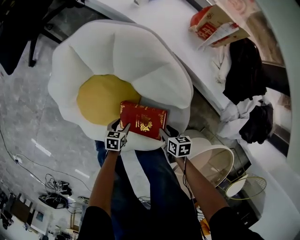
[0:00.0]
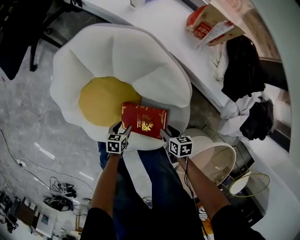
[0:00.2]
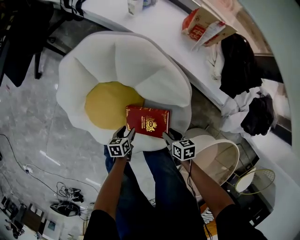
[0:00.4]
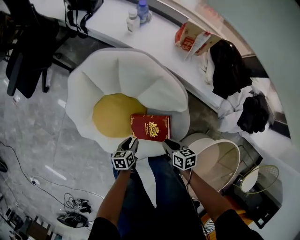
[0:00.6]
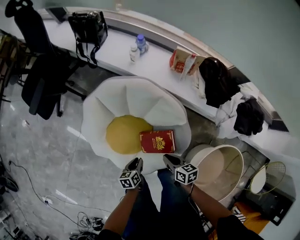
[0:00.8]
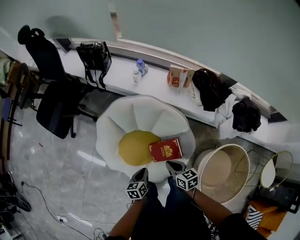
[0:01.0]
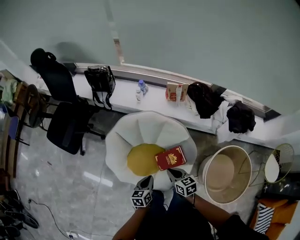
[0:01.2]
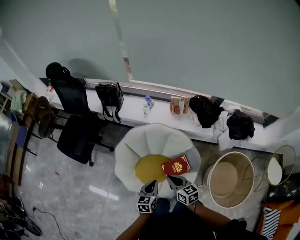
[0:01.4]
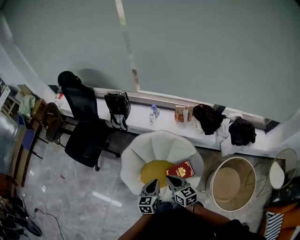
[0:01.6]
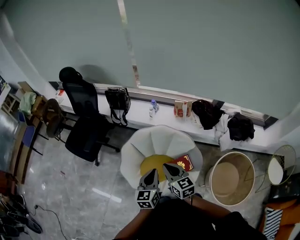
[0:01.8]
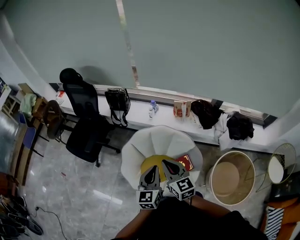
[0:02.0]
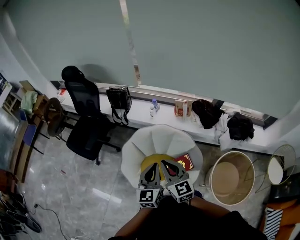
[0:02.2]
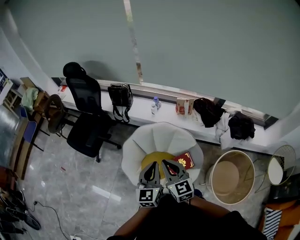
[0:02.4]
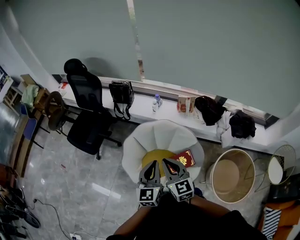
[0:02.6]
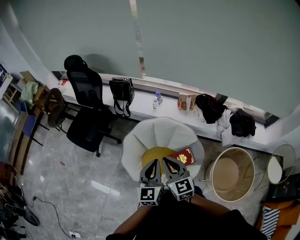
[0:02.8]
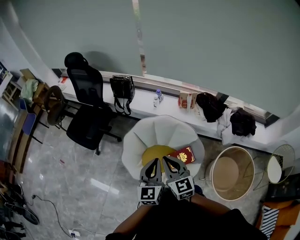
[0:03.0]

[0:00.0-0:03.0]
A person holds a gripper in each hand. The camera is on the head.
0.0 to 1.6 s: The left gripper shifts approximately 60 cm upward, tilts its fingers about 30 degrees upward, and closes its fingers. The right gripper heads upward and to the left, covering some 60 cm, tips its fingers upward by roughly 40 degrees, and closes up.
1.6 to 3.0 s: The right gripper moves upward and to the left, roughly 15 cm, and changes its angle by approximately 20 degrees. Meanwhile the left gripper heads upward, covering about 15 cm, and turns by roughly 20 degrees.

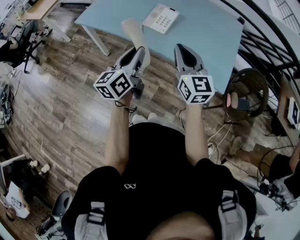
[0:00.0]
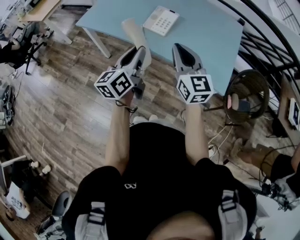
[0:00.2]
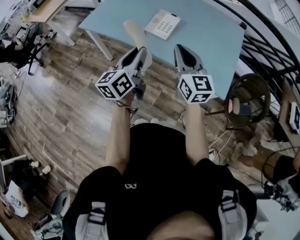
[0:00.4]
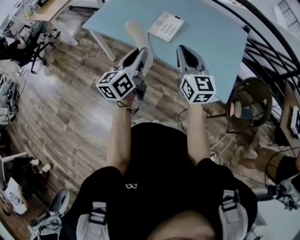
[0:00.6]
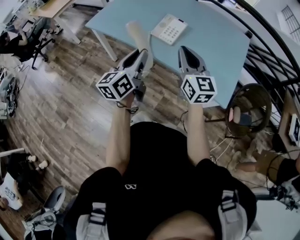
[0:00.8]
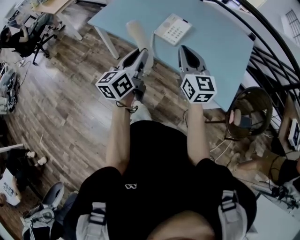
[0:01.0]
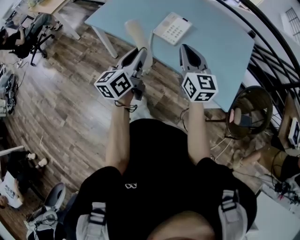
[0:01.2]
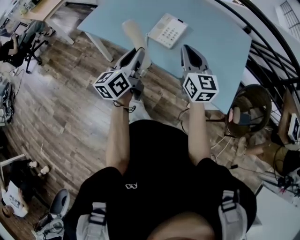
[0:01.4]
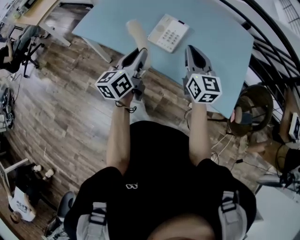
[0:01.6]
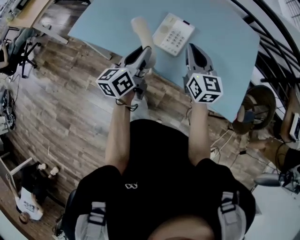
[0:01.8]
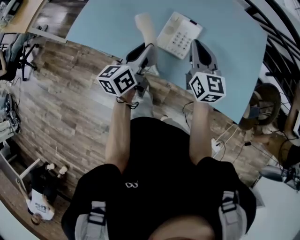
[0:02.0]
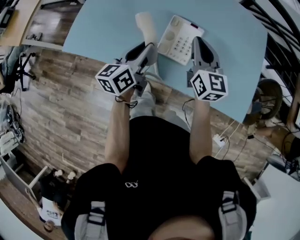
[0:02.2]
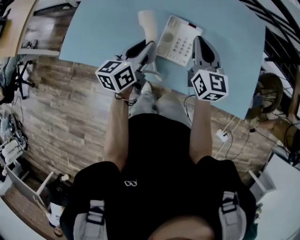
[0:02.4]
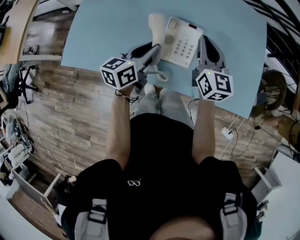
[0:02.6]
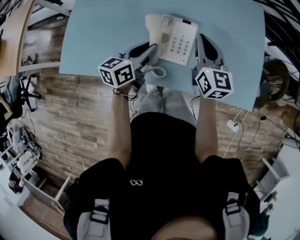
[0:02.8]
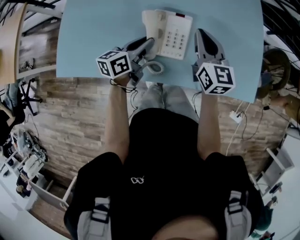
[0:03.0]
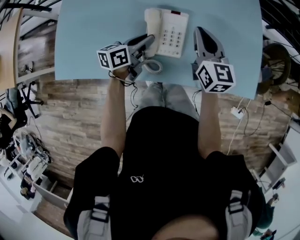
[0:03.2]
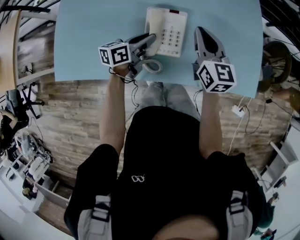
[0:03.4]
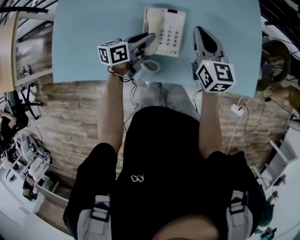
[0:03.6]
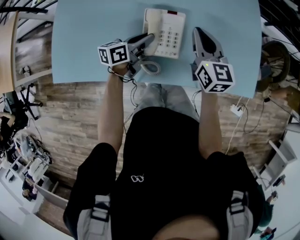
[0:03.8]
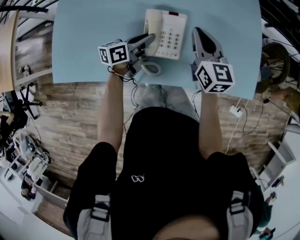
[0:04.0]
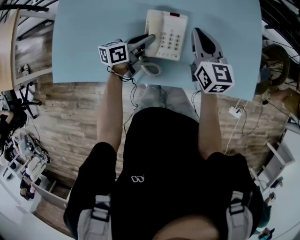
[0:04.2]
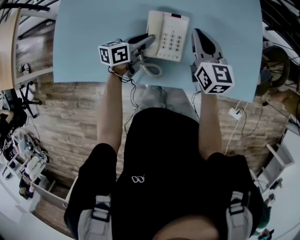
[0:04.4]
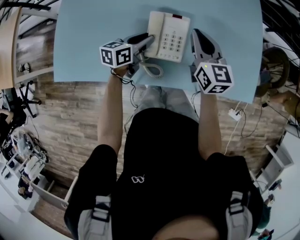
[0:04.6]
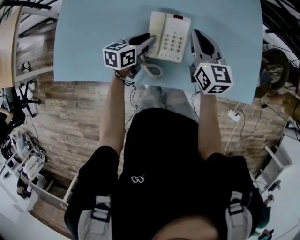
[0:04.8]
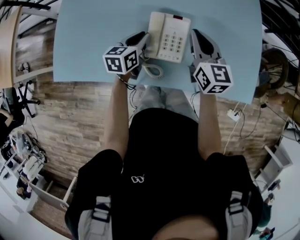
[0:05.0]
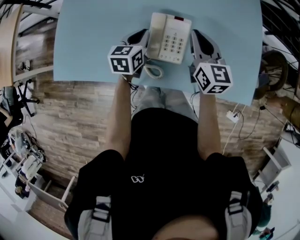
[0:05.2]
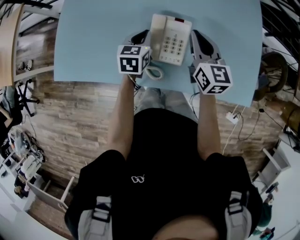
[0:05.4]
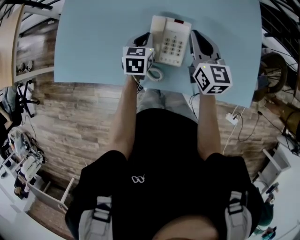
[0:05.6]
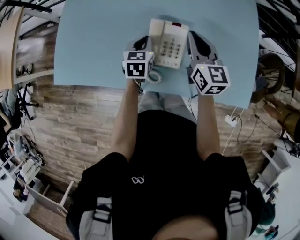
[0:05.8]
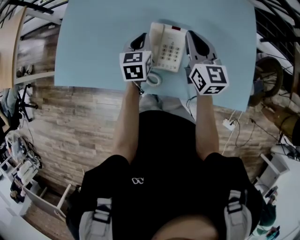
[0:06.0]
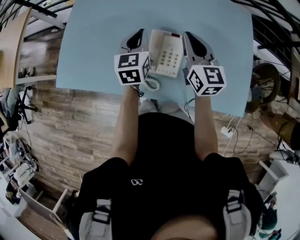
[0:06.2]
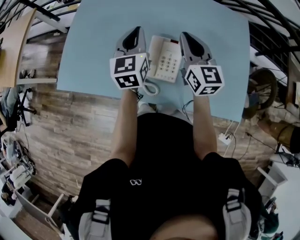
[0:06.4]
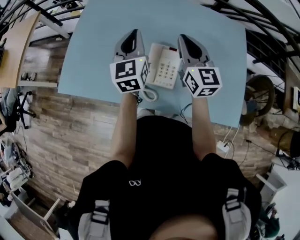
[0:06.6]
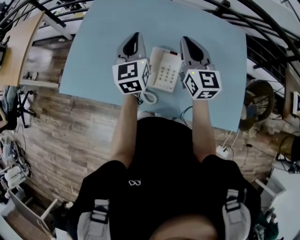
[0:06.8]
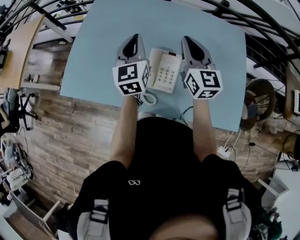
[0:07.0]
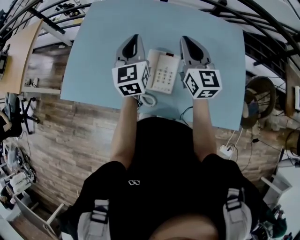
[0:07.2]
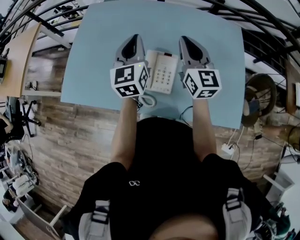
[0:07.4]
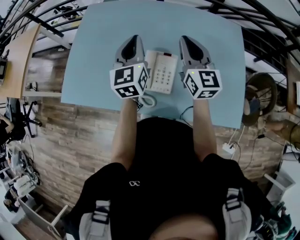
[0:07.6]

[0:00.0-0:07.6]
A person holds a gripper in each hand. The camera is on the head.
0.0 to 1.6 s: Both grippers travel together forward, roughly 15 cm.
1.6 to 3.0 s: The right gripper changes place by approximately 20 cm, and changes its angle by about 20 degrees. The left gripper shifts by approximately 25 cm, and turns by some 40 degrees.
3.0 to 4.6 s: The left gripper heads downward, covering roughly 5 cm.
4.6 to 6.0 s: The left gripper goes approximately 5 cm upward, changes its angle by about 40 degrees, and closes up.
6.0 to 7.6 s: The right gripper shifts some 10 cm upward; the left gripper moves upward, roughly 20 cm, and changes its angle by roughly 30 degrees.

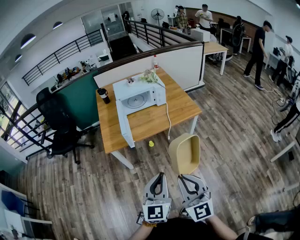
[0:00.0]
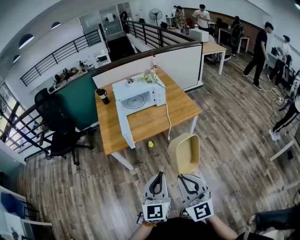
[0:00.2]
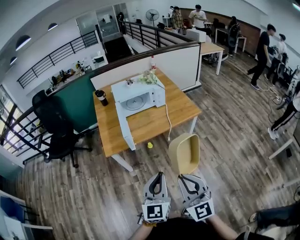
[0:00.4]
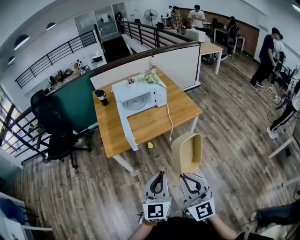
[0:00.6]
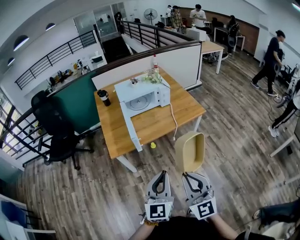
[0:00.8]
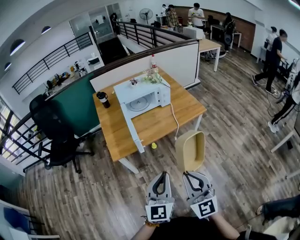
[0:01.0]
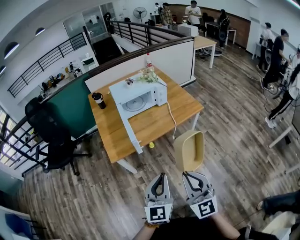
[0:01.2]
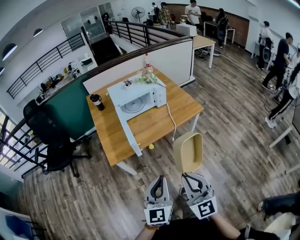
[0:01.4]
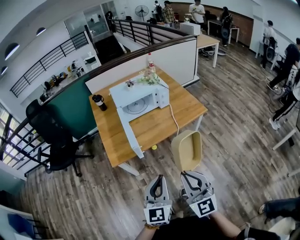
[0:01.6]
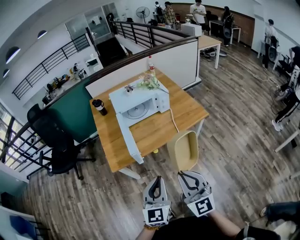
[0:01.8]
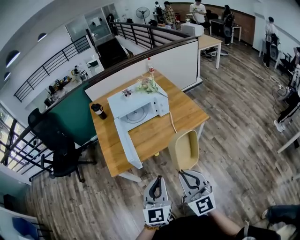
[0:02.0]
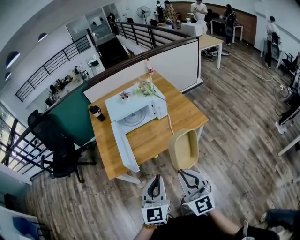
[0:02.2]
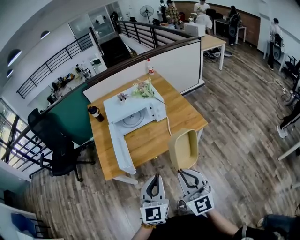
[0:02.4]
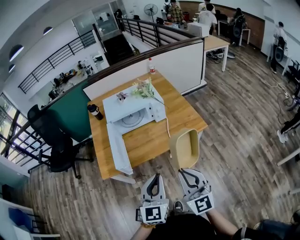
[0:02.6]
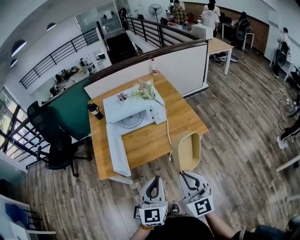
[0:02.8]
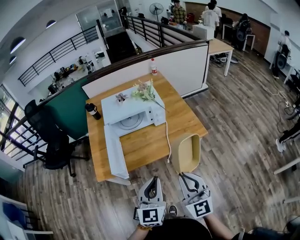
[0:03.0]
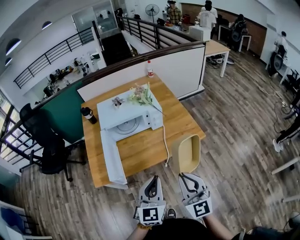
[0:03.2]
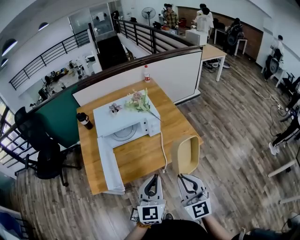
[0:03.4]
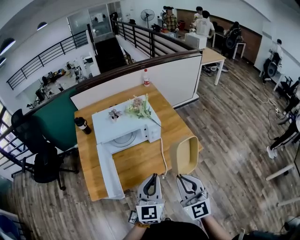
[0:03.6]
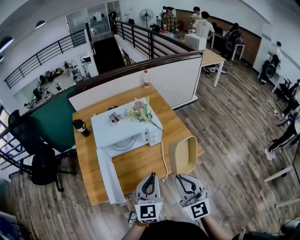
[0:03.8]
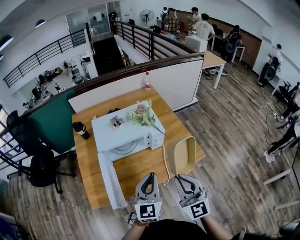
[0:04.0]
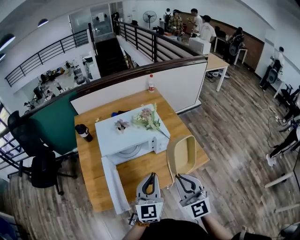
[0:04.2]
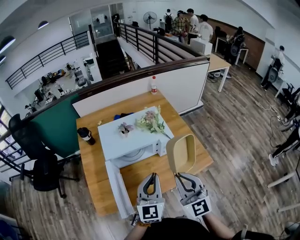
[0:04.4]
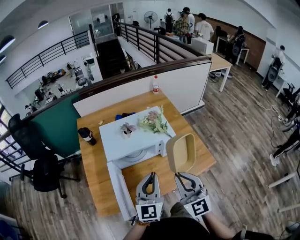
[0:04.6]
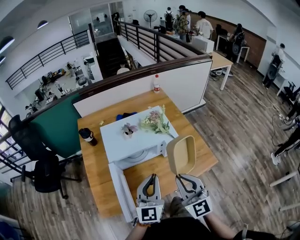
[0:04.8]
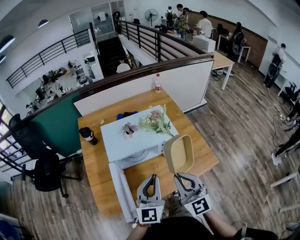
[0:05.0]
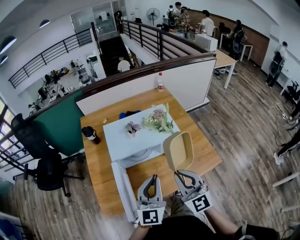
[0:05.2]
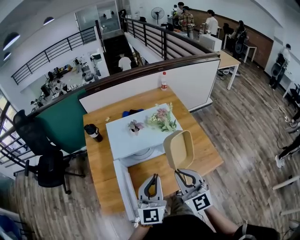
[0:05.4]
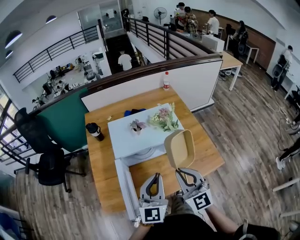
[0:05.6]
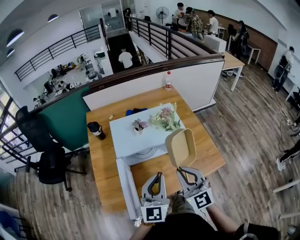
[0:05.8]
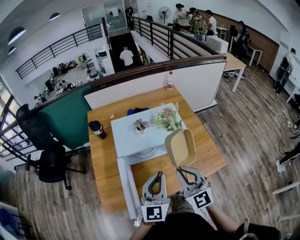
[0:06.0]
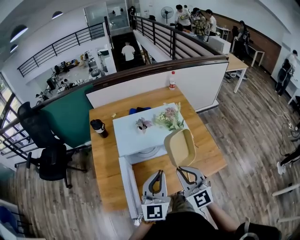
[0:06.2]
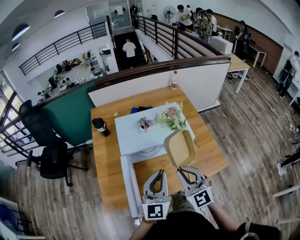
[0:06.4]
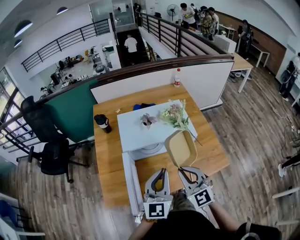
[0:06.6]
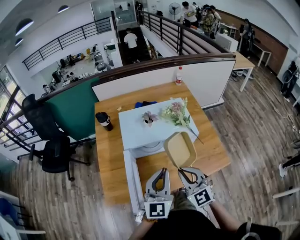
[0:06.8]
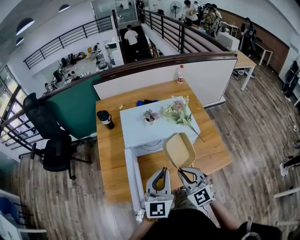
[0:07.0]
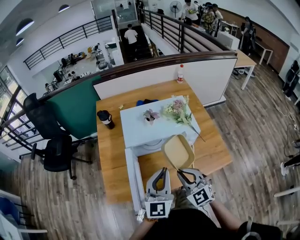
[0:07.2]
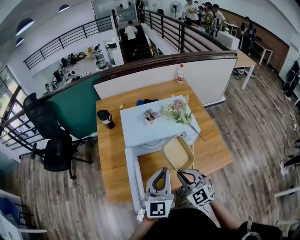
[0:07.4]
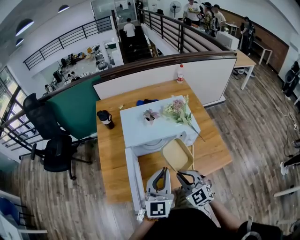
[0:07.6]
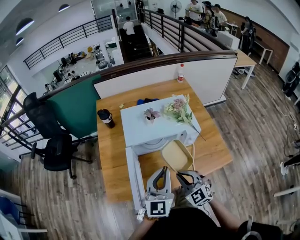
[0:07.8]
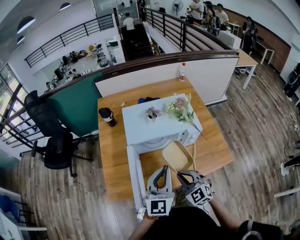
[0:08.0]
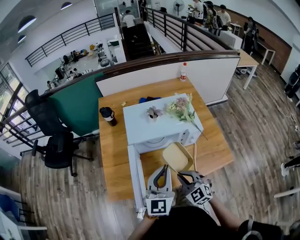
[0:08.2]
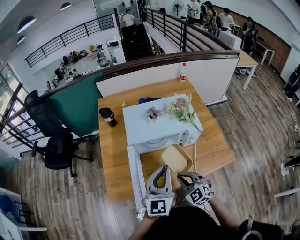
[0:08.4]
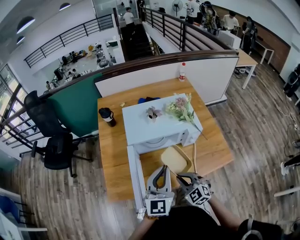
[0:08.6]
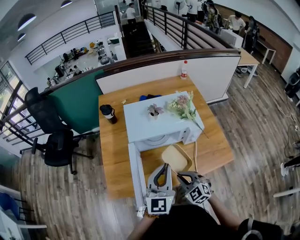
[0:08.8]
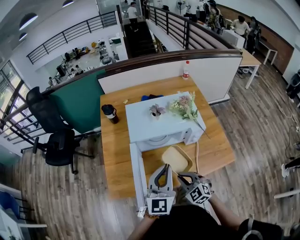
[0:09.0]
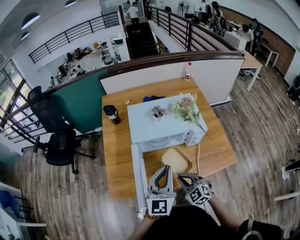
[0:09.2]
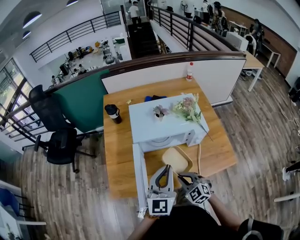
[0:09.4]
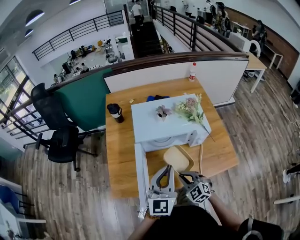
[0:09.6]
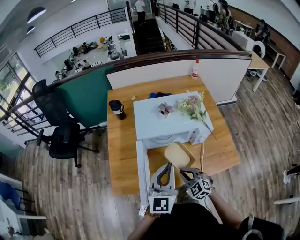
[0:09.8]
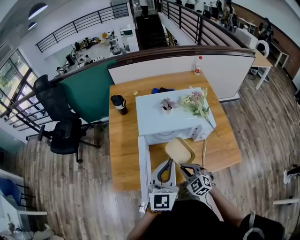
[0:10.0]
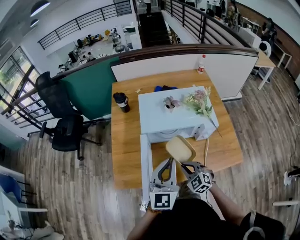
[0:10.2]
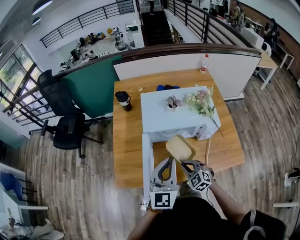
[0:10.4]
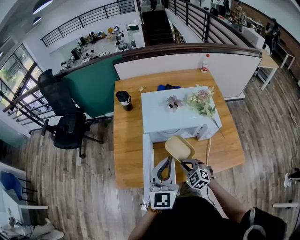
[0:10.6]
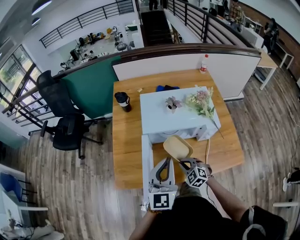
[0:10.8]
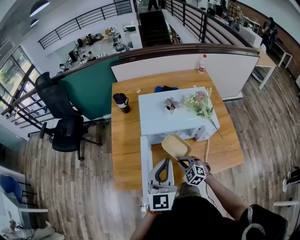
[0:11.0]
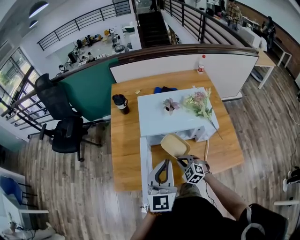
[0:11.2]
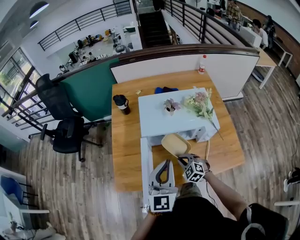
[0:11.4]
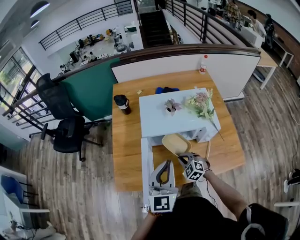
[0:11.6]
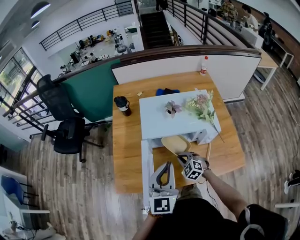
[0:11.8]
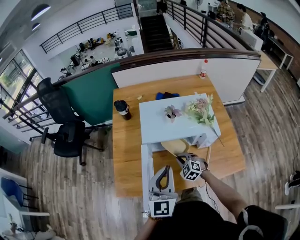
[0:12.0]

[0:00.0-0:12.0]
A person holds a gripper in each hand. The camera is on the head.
0.0 to 1.6 s: The right gripper travels forward and to the left by approximately 15 cm; the left gripper shifts roughly 15 cm to the left and forward.
1.6 to 3.0 s: Both grippers move forward and to the right, roughly 20 cm.
3.0 to 4.4 s: Both grippers move forward, approximately 25 cm.
4.4 to 6.0 s: The right gripper is displaced forward and downward by approximately 10 cm.
6.0 to 7.6 s: The right gripper heads downward, covering about 10 cm.
7.6 to 9.0 s: The right gripper goes roughly 10 cm downward.
9.0 to 10.4 s: The right gripper shifts some 5 cm forward.
10.4 to 12.0 s: The right gripper travels forward and downward by approximately 10 cm.

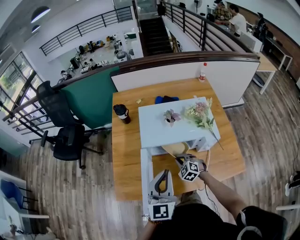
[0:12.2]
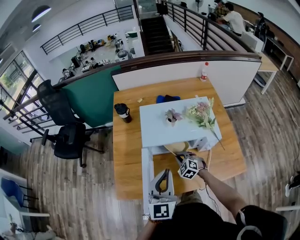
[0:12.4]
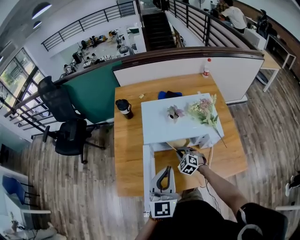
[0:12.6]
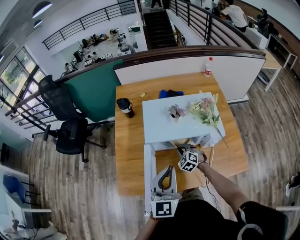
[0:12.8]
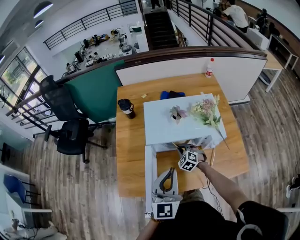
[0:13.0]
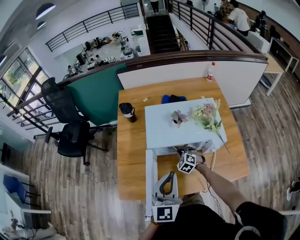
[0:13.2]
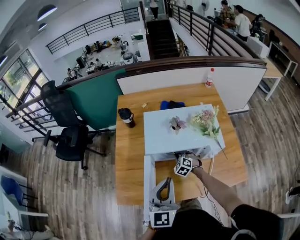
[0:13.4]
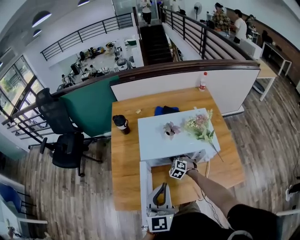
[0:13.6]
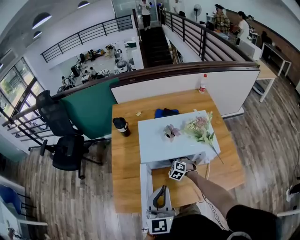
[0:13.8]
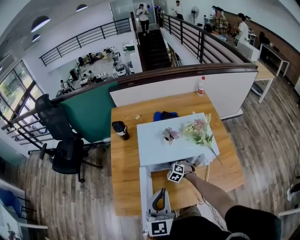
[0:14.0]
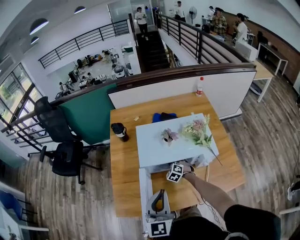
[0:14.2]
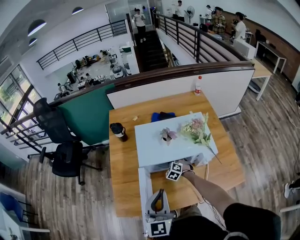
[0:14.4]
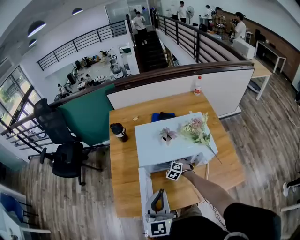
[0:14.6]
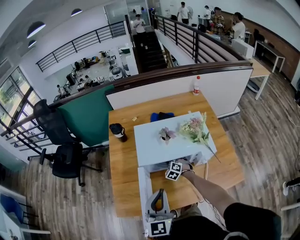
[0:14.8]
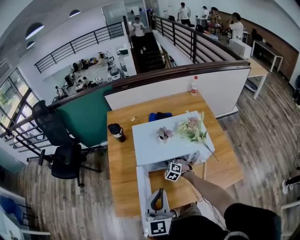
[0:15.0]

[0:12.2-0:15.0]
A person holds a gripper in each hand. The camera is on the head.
12.2 to 13.6 s: The right gripper goes approximately 10 cm forward.
13.6 to 15.0 s: The right gripper opens.
